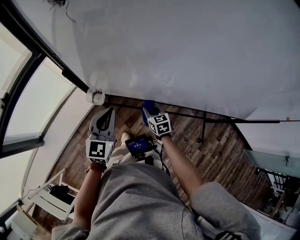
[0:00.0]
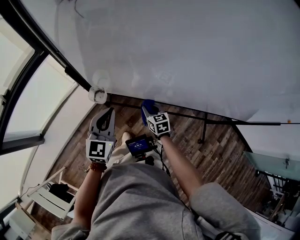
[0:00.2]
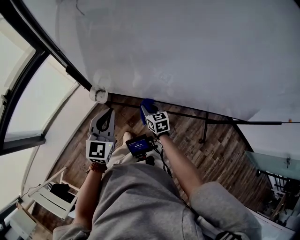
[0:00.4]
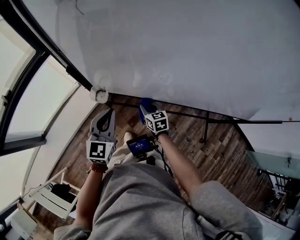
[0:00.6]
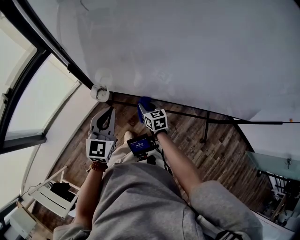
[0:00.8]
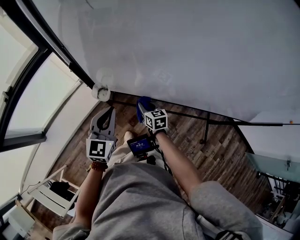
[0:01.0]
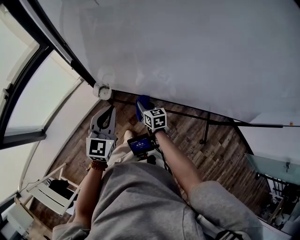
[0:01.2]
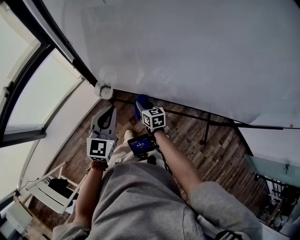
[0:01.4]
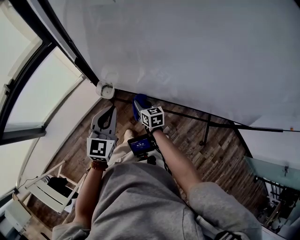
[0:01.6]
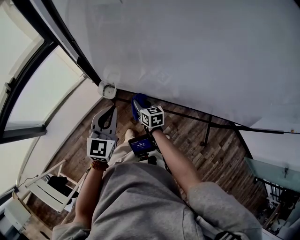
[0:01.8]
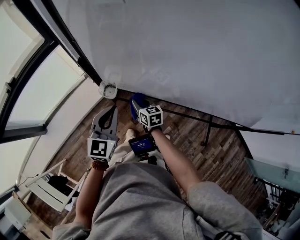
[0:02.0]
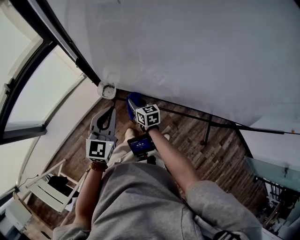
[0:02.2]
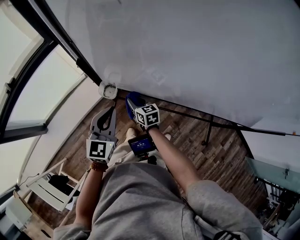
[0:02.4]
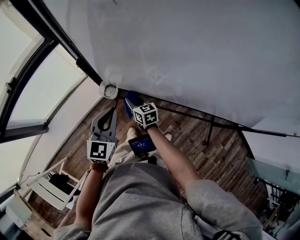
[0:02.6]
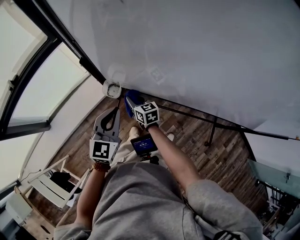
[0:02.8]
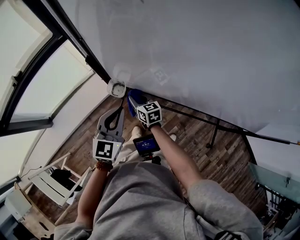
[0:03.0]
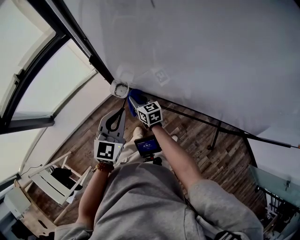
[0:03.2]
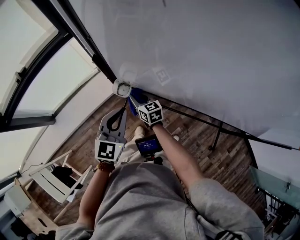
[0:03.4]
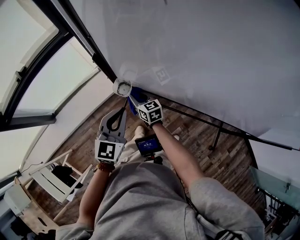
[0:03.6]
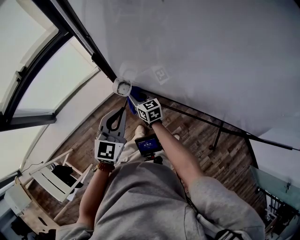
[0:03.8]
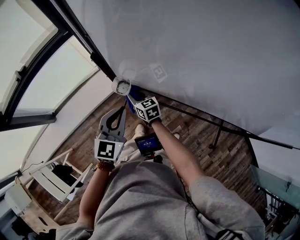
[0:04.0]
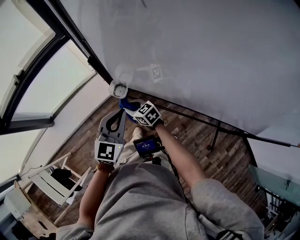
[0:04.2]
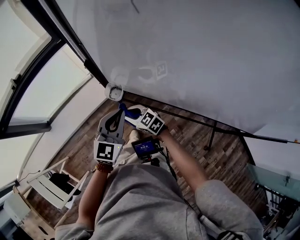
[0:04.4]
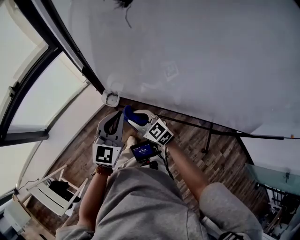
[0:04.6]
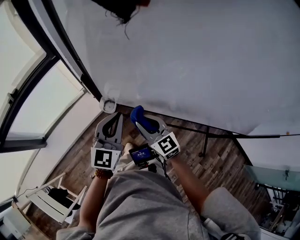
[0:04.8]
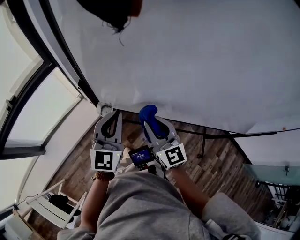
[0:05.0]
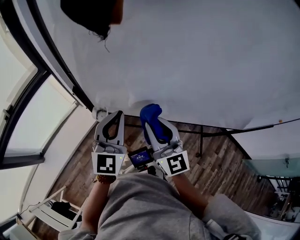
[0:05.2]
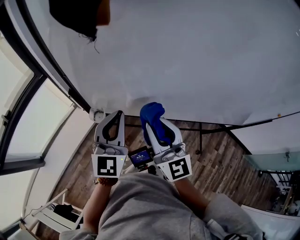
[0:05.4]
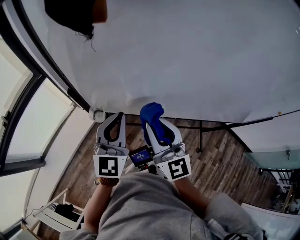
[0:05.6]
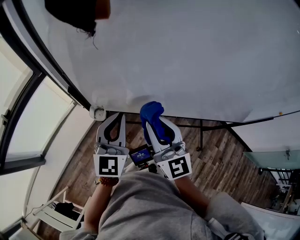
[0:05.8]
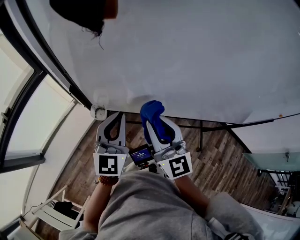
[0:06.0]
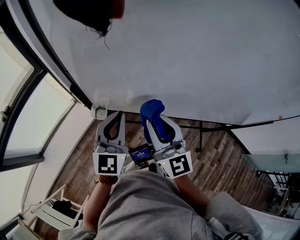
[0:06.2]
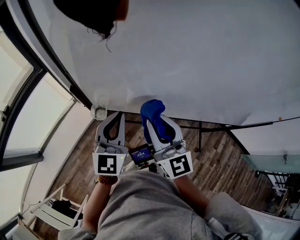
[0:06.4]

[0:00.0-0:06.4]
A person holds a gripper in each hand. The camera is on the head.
0:00.0 to 0:01.6: The right gripper moves to the left, roughly 10 cm.
0:01.6 to 0:03.2: The right gripper shifts approximately 10 cm to the left.
0:03.2 to 0:04.8: The left gripper moves upward, approximately 10 cm. Meanwhile the right gripper moves upward and backward, roughly 20 cm, and swivels some 30 degrees.
0:04.8 to 0:06.4: The left gripper is displaced upward by approximately 5 cm, while the right gripper travels upward by approximately 15 cm, and changes its angle by some 30 degrees.

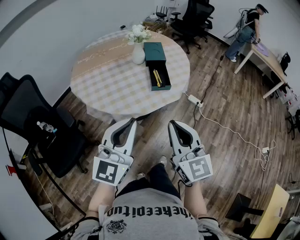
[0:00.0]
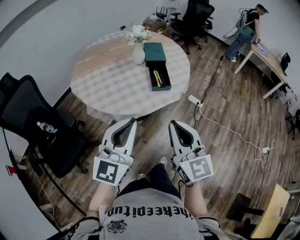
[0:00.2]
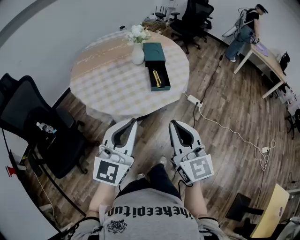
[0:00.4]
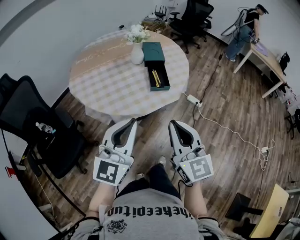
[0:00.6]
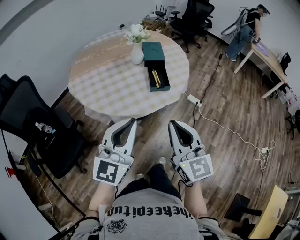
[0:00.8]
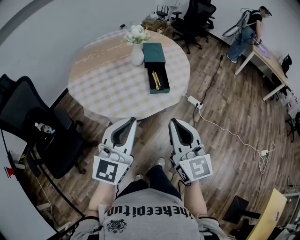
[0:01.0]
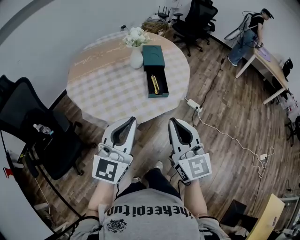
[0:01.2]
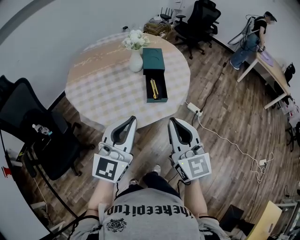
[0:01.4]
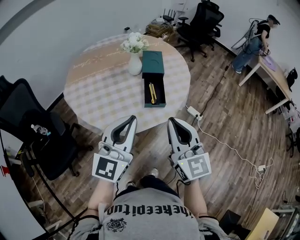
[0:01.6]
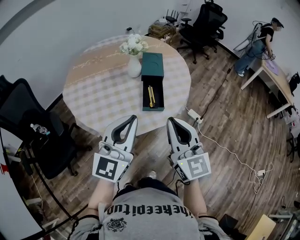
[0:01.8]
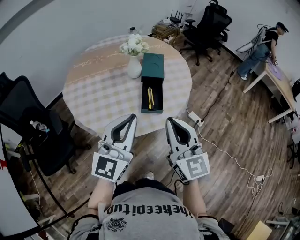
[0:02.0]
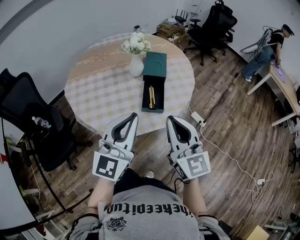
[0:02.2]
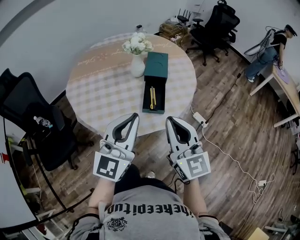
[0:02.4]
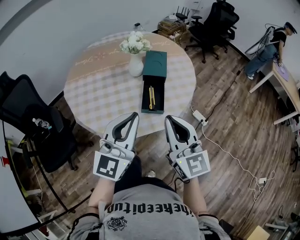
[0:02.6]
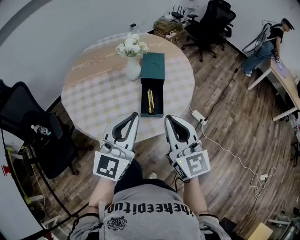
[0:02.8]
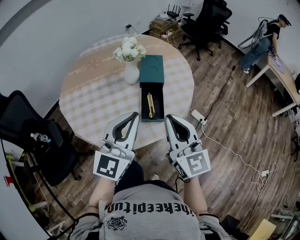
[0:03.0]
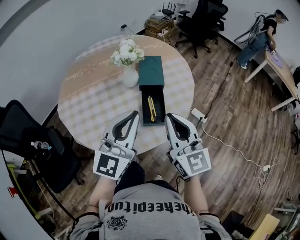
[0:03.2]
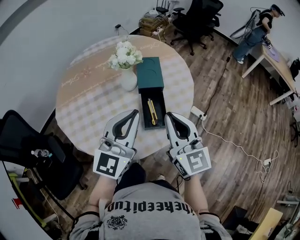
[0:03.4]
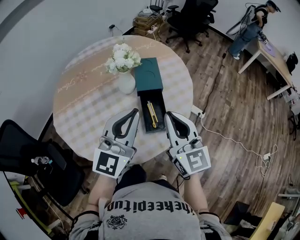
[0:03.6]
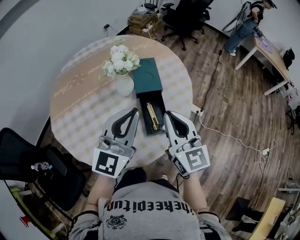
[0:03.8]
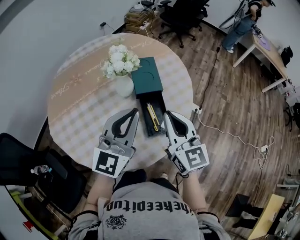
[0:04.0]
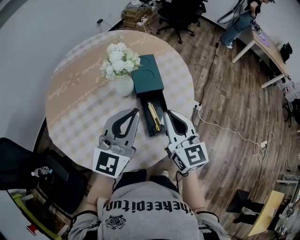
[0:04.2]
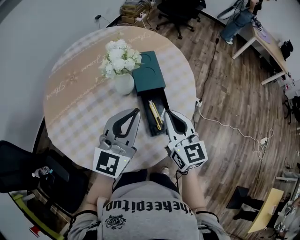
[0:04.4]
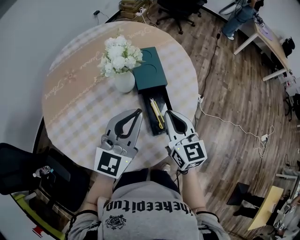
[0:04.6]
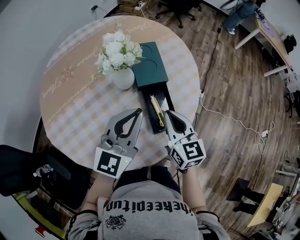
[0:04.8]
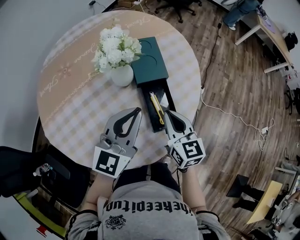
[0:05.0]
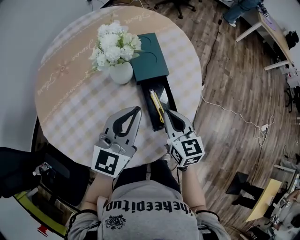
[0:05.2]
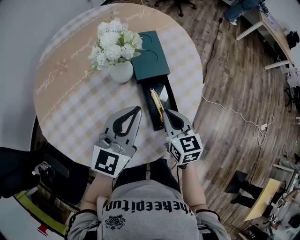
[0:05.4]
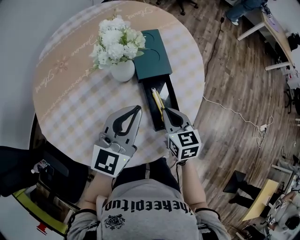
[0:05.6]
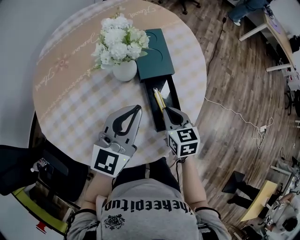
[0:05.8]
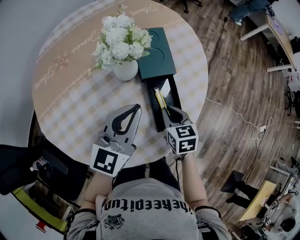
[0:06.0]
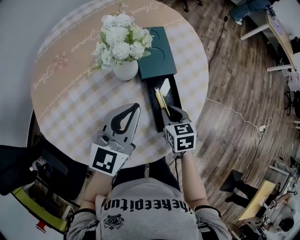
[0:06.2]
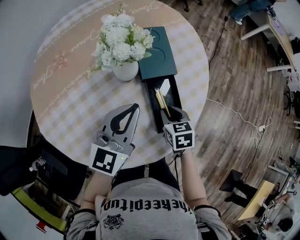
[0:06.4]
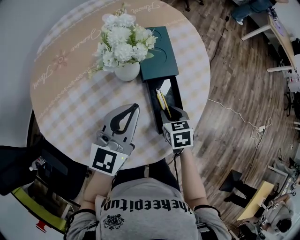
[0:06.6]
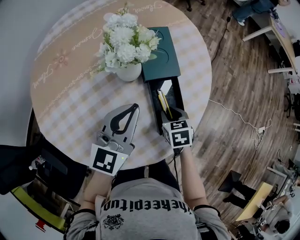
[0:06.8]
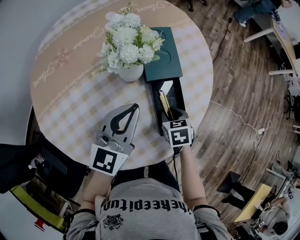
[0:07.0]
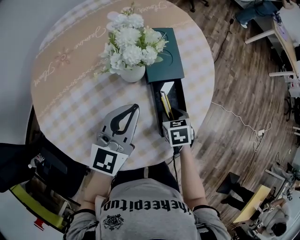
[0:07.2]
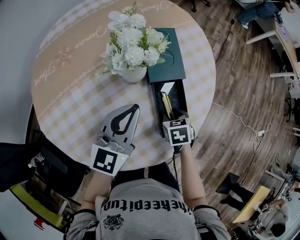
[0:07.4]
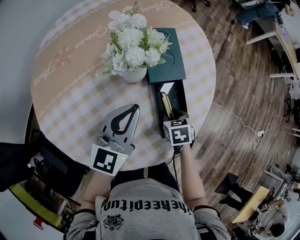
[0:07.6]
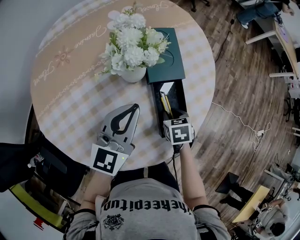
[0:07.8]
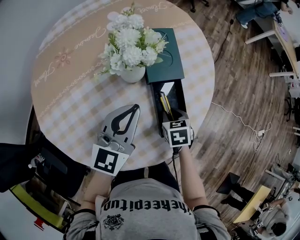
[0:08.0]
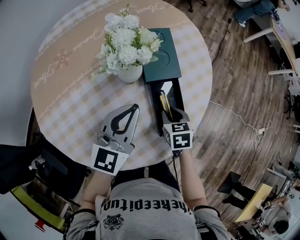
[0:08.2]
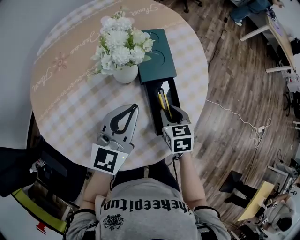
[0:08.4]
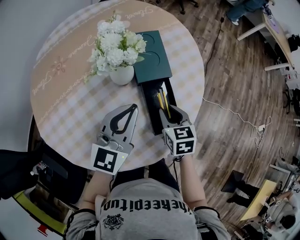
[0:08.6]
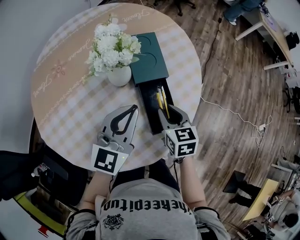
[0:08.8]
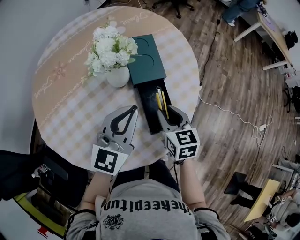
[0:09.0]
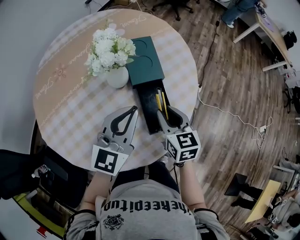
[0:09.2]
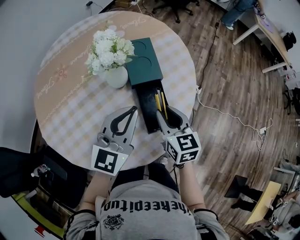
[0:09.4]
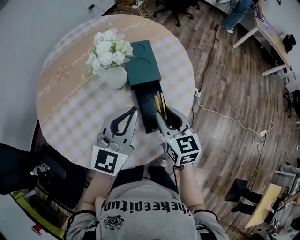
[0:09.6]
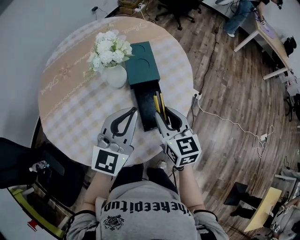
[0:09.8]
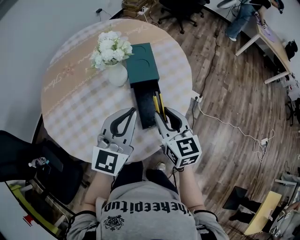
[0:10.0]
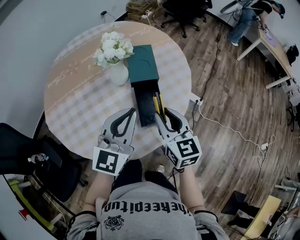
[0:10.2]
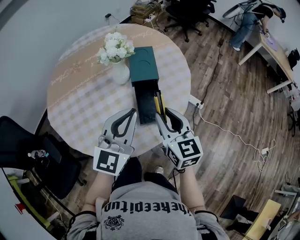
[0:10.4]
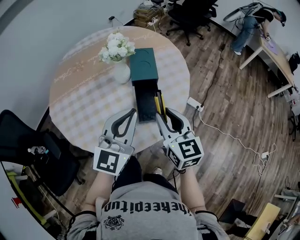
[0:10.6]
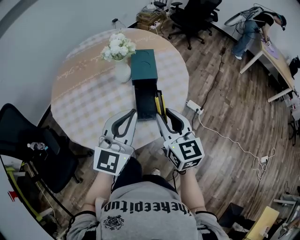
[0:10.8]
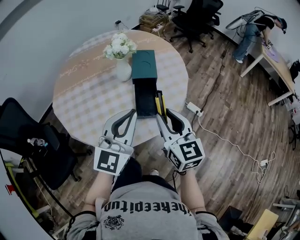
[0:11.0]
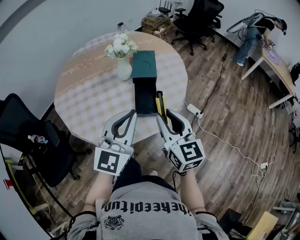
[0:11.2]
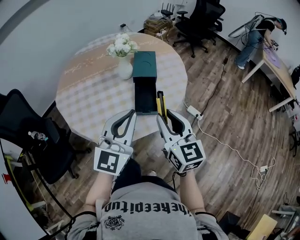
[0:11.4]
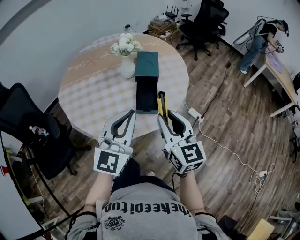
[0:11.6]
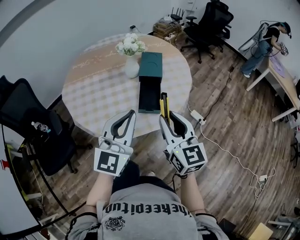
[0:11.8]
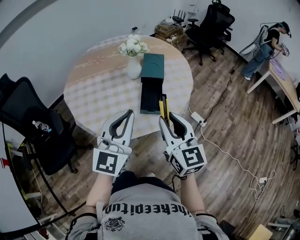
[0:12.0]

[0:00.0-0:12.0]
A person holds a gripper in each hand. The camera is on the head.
0:00.0 to 0:01.6: The grippers both shift forward by some 15 cm.
0:01.6 to 0:03.0: Both grippers move forward, about 10 cm.
0:03.0 to 0:04.4: The left gripper is displaced forward by about 15 cm; the right gripper goes about 20 cm forward and downward, and turns by about 20 degrees.
0:04.4 to 0:06.0: The left gripper travels downward by approximately 10 cm. The right gripper heads downward, covering approximately 20 cm, and angles its fingers downward, by approximately 30 degrees.
0:06.0 to 0:07.6: The right gripper travels downward by about 5 cm, changes its angle by some 20 degrees, and opens. Meanwhile the left gripper ends up about 5 cm from where it was.
0:07.6 to 0:09.0: The left gripper shifts some 5 cm to the right; the right gripper moves upward, some 15 cm, and points its fingers about 30 degrees further upward.
0:09.0 to 0:10.4: The left gripper heads backward, upward and to the right, covering about 15 cm. Meanwhile the right gripper goes roughly 15 cm upward and backward, and turns by about 20 degrees.
0:10.4 to 0:12.0: The right gripper moves backward and upward, some 15 cm. The left gripper goes approximately 15 cm backward.

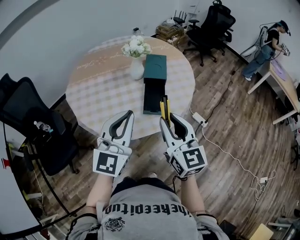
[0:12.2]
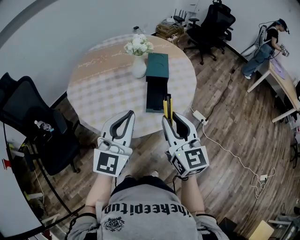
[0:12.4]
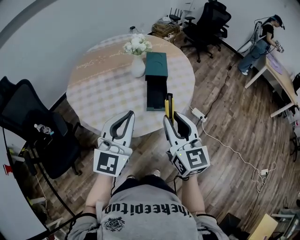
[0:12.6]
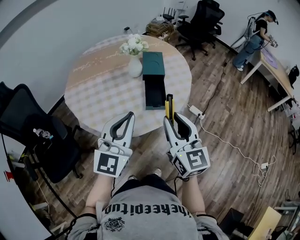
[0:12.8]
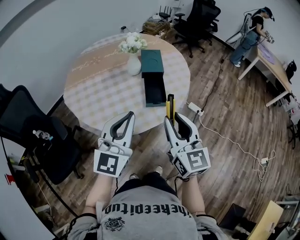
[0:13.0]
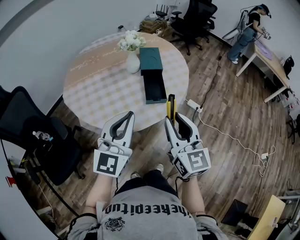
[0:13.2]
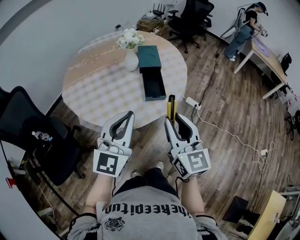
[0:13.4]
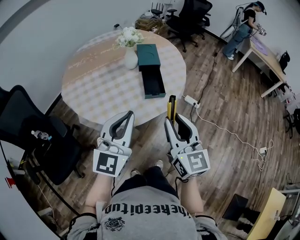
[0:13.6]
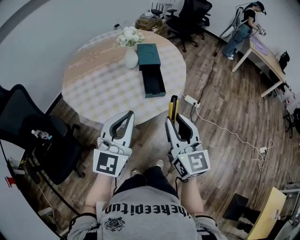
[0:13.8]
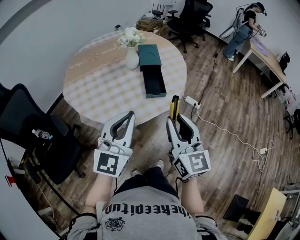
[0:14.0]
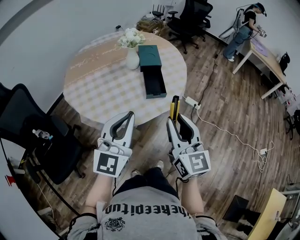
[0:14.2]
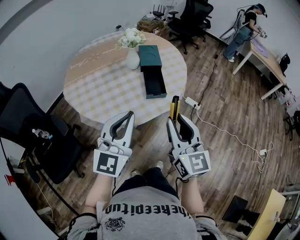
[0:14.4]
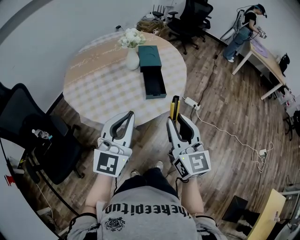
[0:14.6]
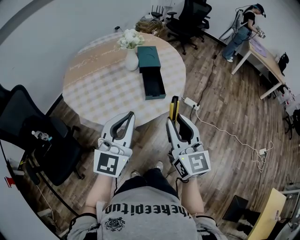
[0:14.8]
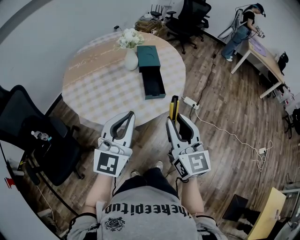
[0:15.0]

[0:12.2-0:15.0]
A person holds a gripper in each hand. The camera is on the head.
0:12.2 to 0:13.6: The right gripper travels backward by approximately 10 cm. Meanwhile the left gripper moves backward and to the left, about 10 cm.
0:13.6 to 0:15.0: The grippers move only a little.

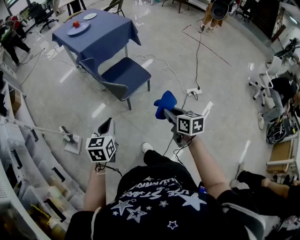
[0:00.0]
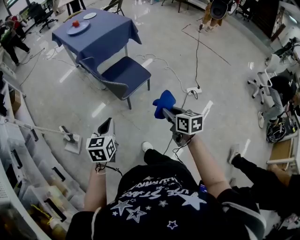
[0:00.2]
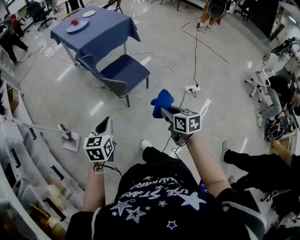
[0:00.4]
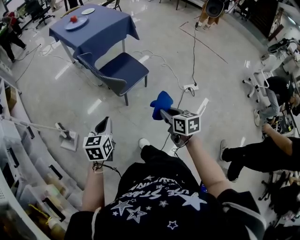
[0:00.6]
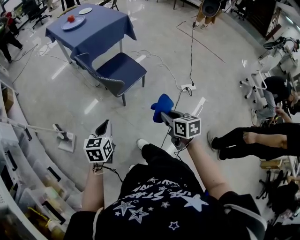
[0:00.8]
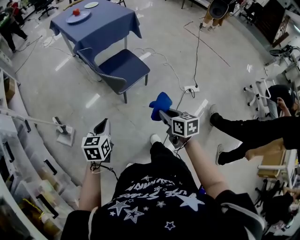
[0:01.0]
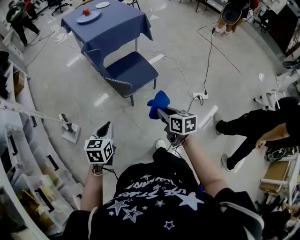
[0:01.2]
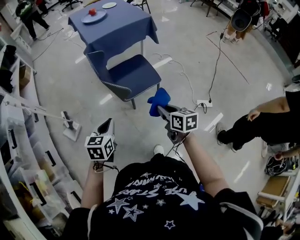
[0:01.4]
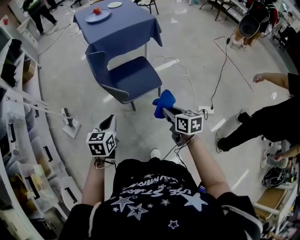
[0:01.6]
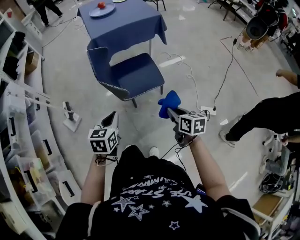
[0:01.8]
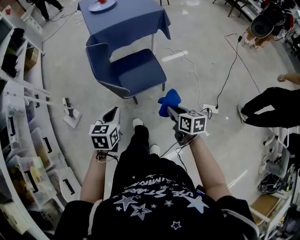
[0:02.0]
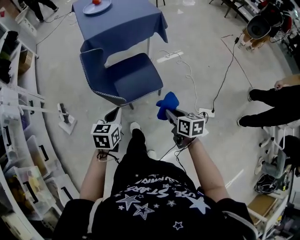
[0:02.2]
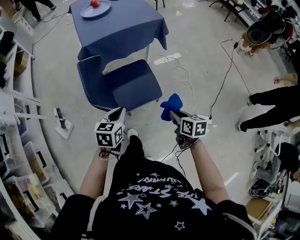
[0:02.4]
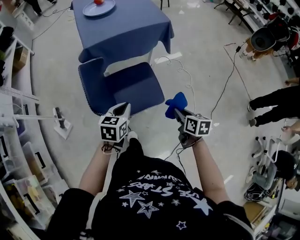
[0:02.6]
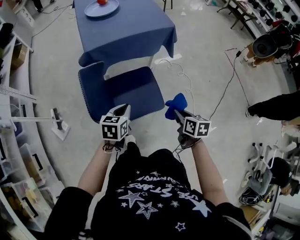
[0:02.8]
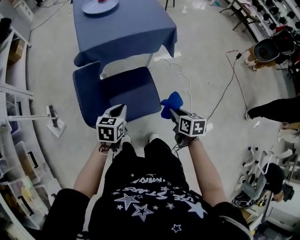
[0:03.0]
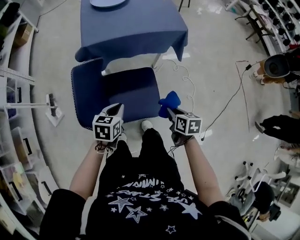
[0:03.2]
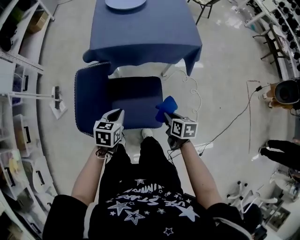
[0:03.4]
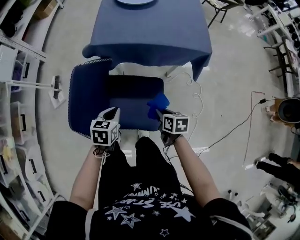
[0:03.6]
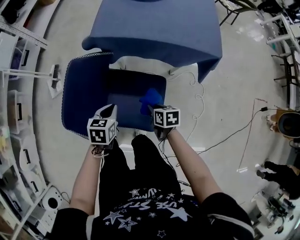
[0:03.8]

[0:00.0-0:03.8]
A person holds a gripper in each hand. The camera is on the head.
0:00.0 to 0:01.2: The right gripper heads forward, covering some 5 cm.
0:01.2 to 0:02.6: The grippers both shift forward and to the right by approximately 35 cm.
0:02.6 to 0:03.8: The right gripper shifts by about 35 cm, and swivels some 40 degrees, while the left gripper ends up some 20 cm from where it was, and rotates roughly 40 degrees.
